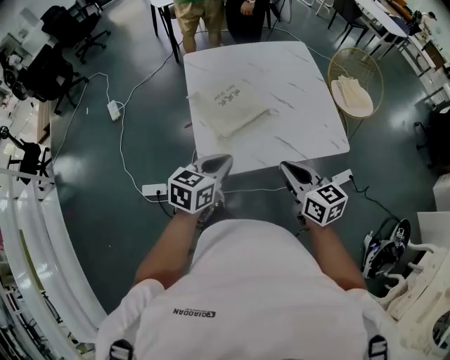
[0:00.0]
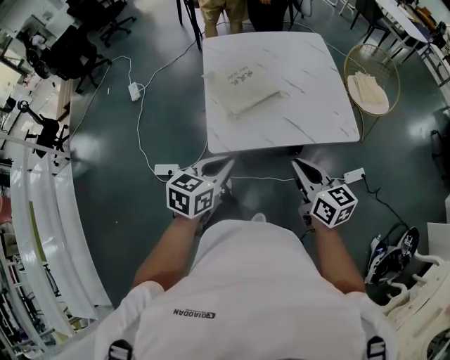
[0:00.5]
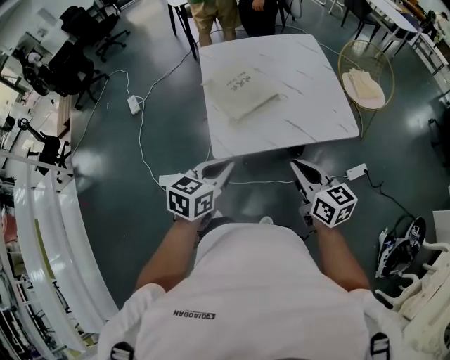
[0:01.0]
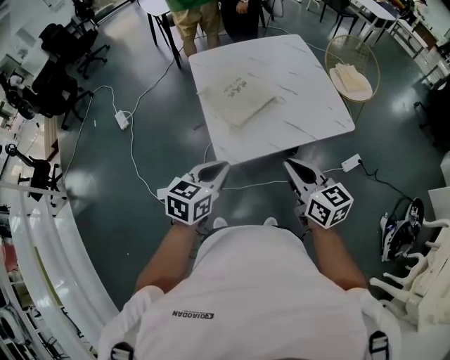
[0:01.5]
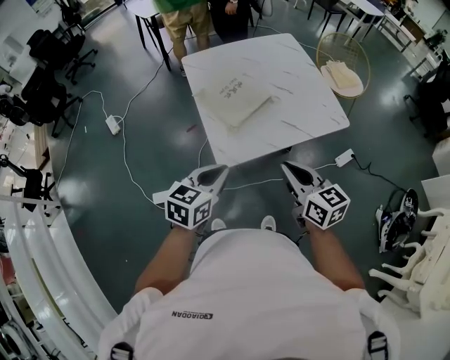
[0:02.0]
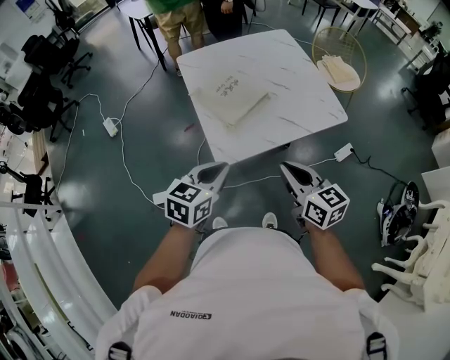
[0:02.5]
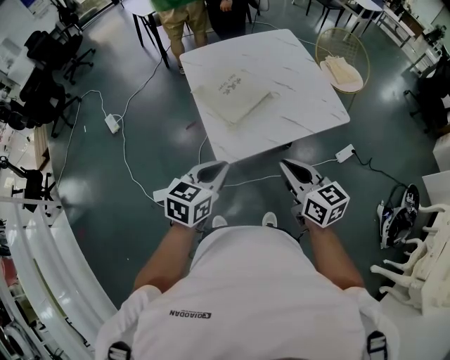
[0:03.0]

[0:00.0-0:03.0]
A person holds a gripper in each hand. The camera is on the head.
0:00.0 to 0:01.5: The left gripper heads backward and to the left, covering roughly 10 cm, while the right gripper heads backward, covering some 10 cm.
0:01.5 to 0:03.0: The grippers make only small movements.

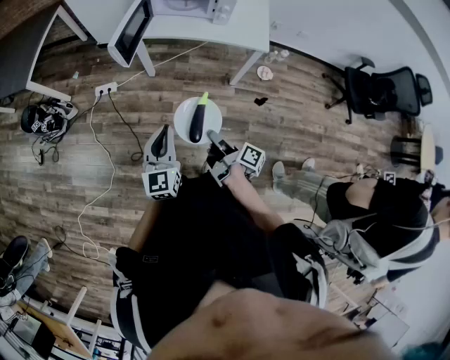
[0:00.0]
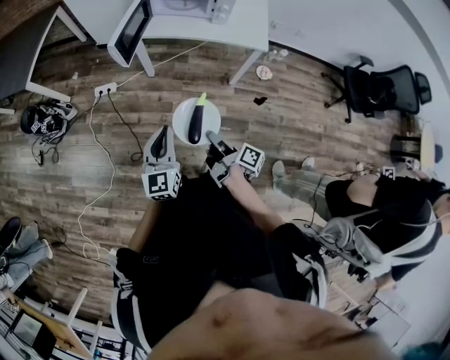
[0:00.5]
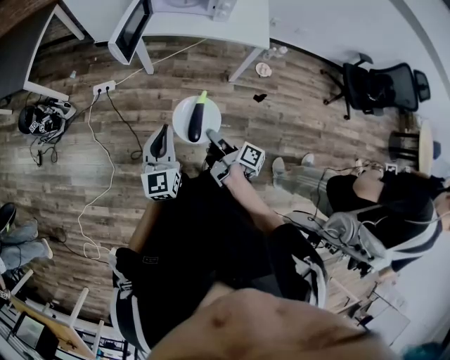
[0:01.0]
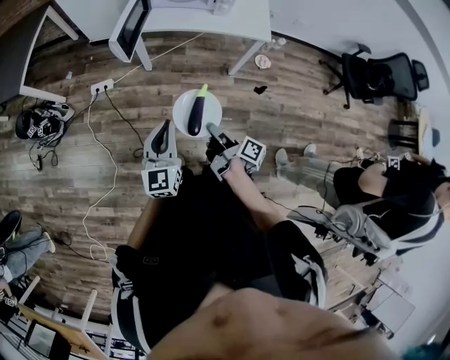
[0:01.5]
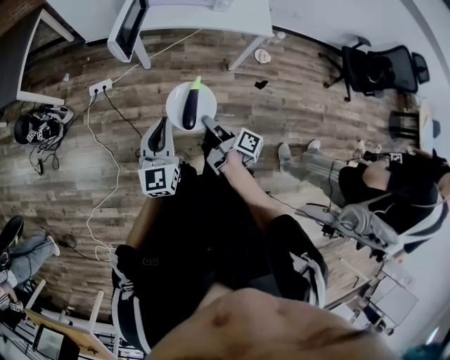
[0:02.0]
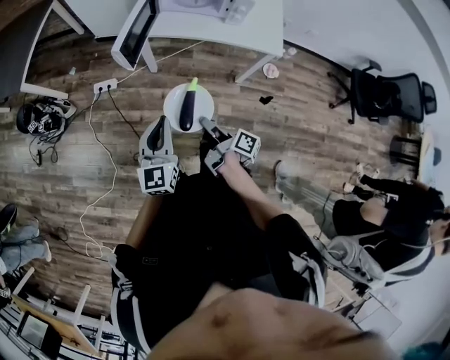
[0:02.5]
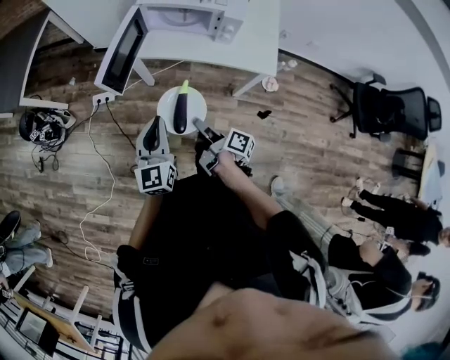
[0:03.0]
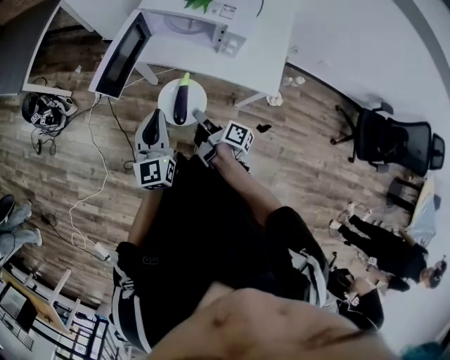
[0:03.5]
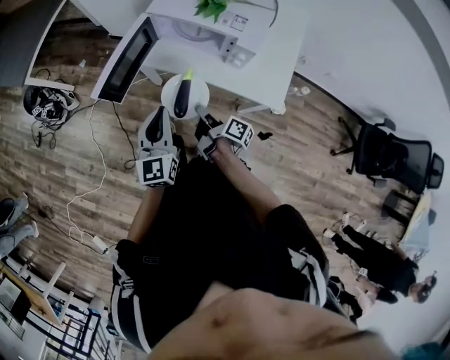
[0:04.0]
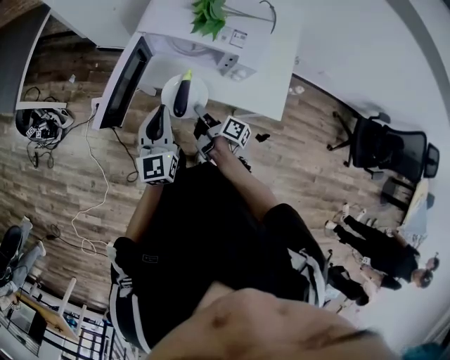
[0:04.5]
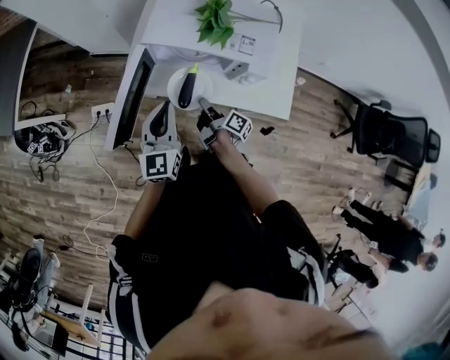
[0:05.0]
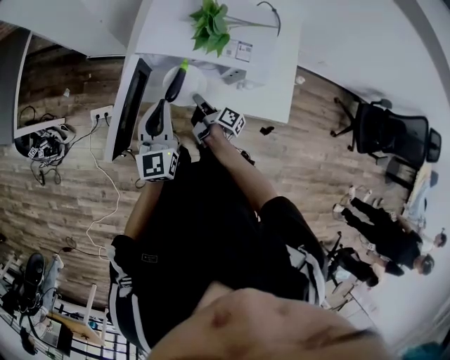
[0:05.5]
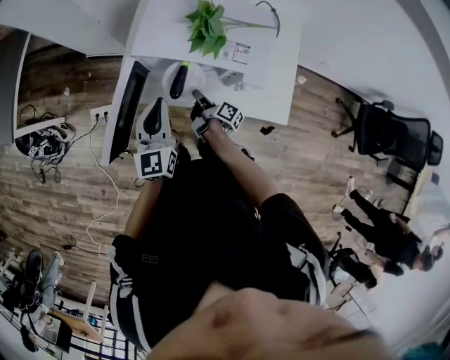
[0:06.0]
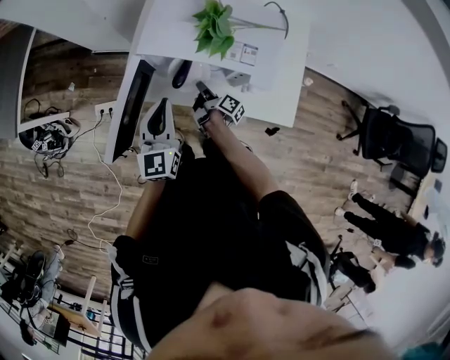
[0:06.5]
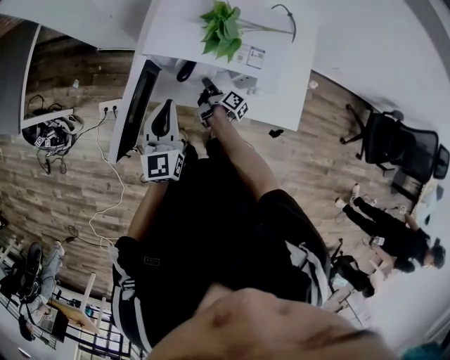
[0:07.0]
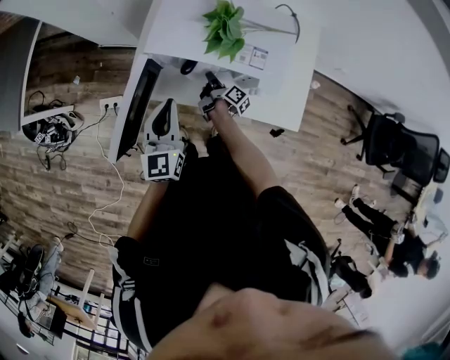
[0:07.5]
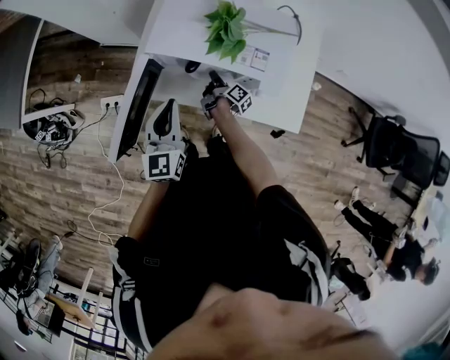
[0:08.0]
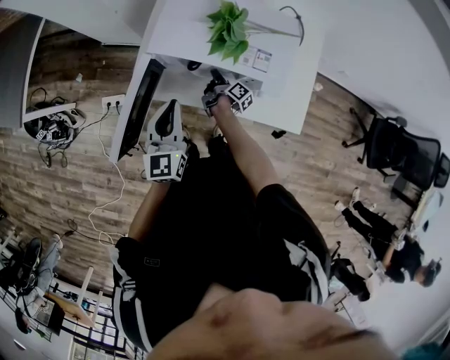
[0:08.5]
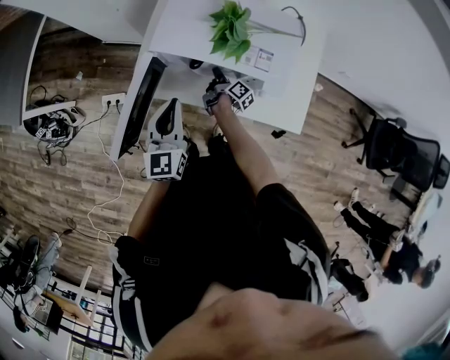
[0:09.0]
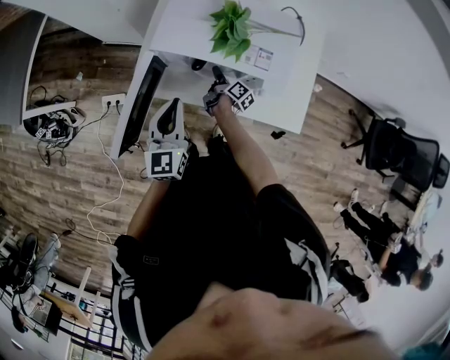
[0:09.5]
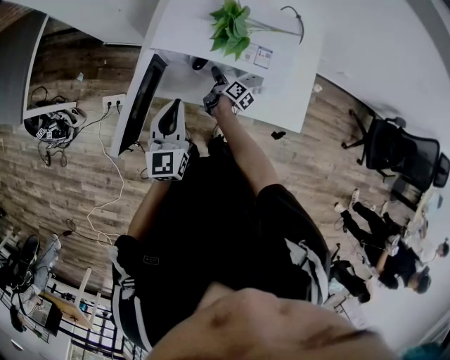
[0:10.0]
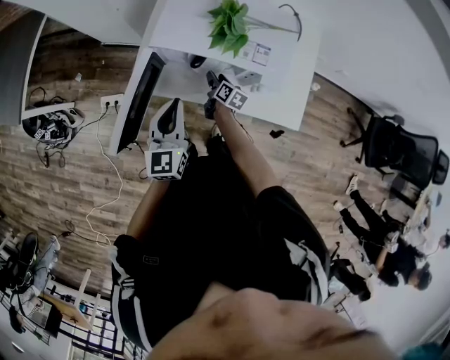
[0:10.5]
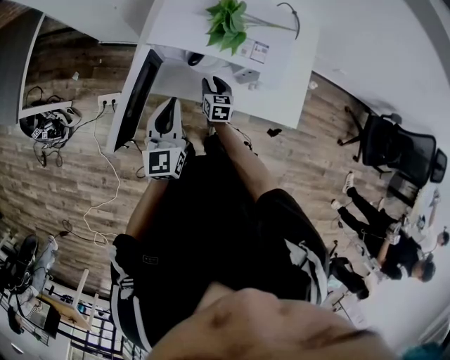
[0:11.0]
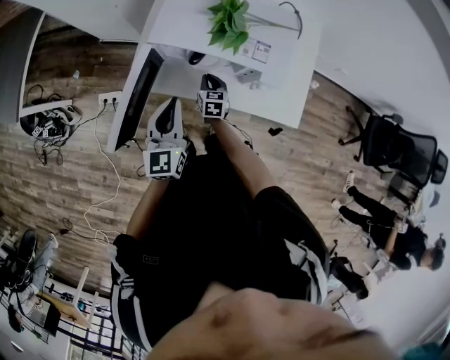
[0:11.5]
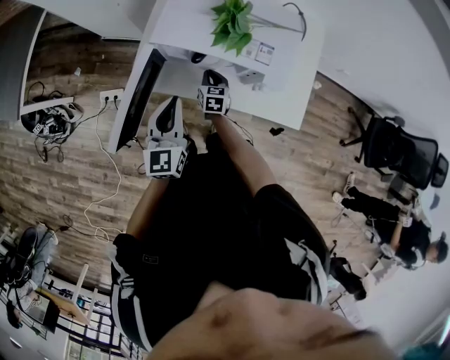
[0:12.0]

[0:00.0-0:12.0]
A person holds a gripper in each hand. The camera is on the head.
0:00.0 to 0:02.0: The grippers both shift to the left by some 5 cm.
0:02.0 to 0:04.0: Both grippers travel together forward and to the right, roughly 35 cm. The left gripper rotates some 20 degrees.
0:04.0 to 0:06.0: The left gripper travels forward by roughly 20 cm, while the right gripper goes approximately 25 cm forward and downward.
0:06.0 to 0:08.0: The right gripper moves forward and downward, approximately 10 cm.
0:08.0 to 0:10.0: The right gripper opens.
0:10.0 to 0:12.0: The right gripper rolls counterclockwise, seen from behind, by roughly 60 degrees, and closes.

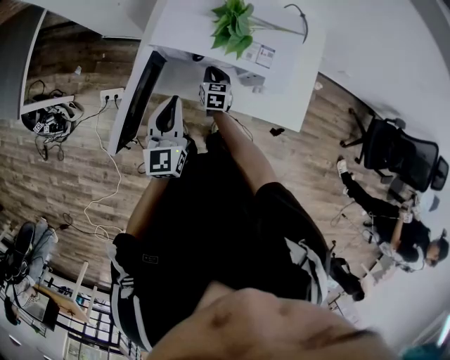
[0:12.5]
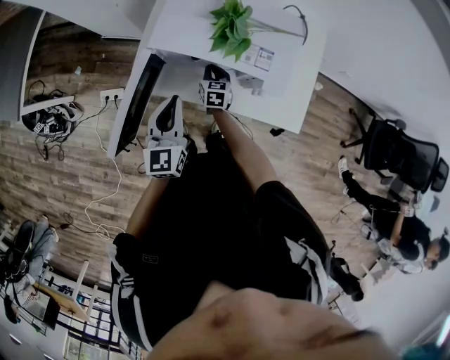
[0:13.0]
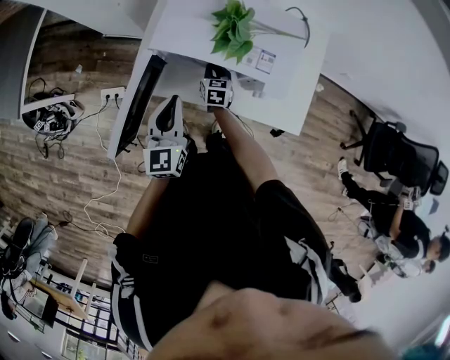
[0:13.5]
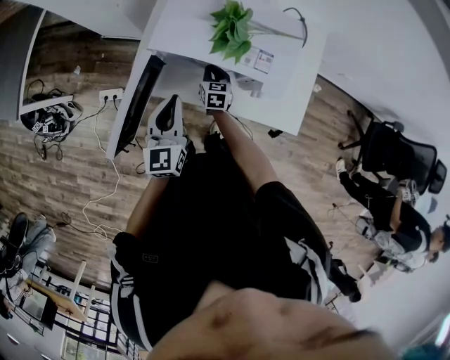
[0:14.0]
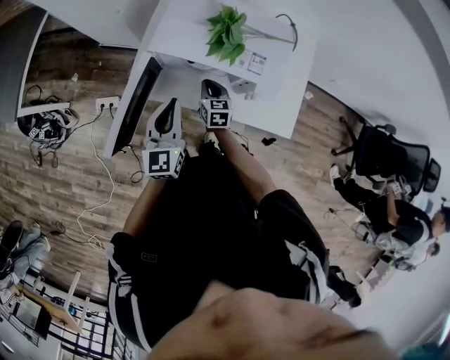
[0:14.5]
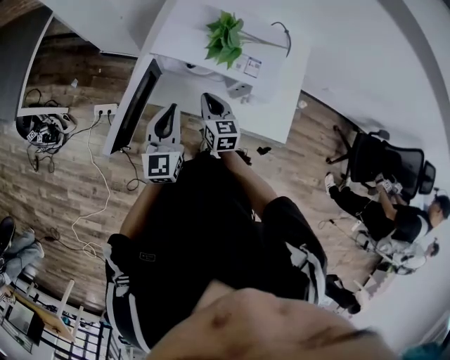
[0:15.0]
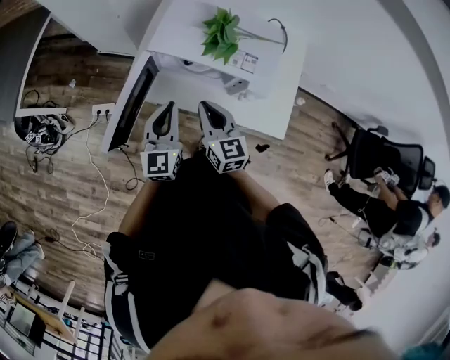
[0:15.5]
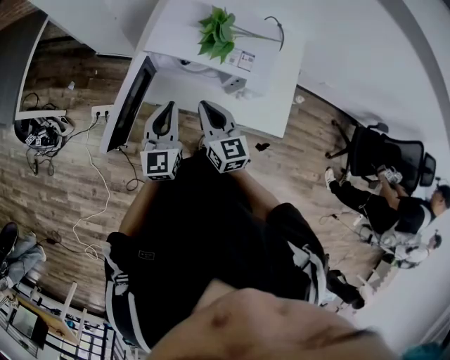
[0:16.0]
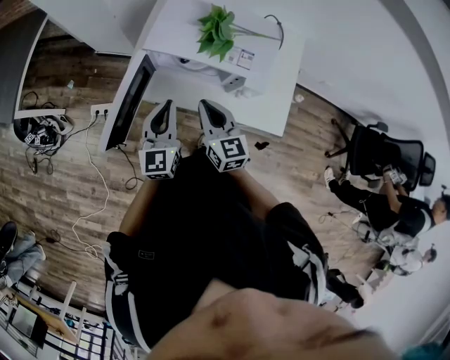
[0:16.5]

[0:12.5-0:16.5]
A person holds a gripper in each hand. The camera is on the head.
0:12.5 to 0:14.5: The right gripper goes some 5 cm upward.
0:14.5 to 0:16.5: The right gripper heads upward and backward, covering some 20 cm, and turns by about 20 degrees.

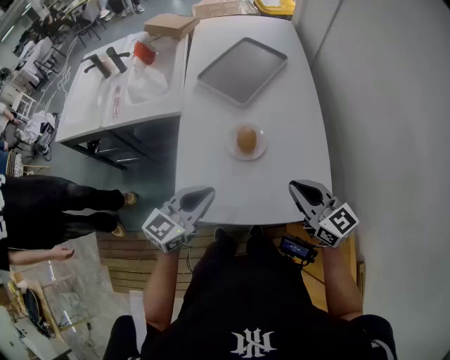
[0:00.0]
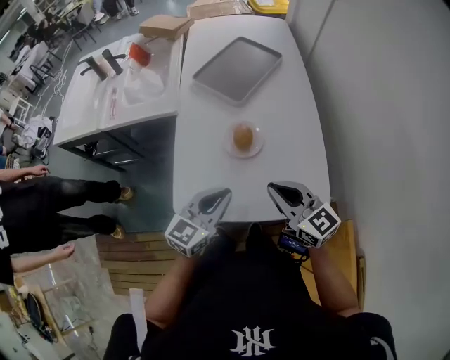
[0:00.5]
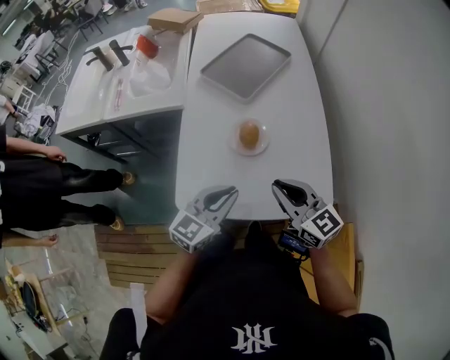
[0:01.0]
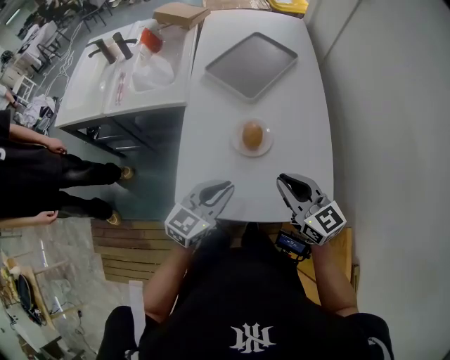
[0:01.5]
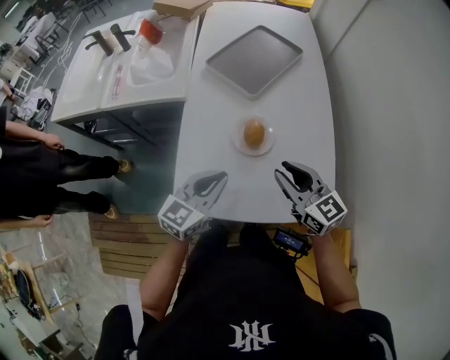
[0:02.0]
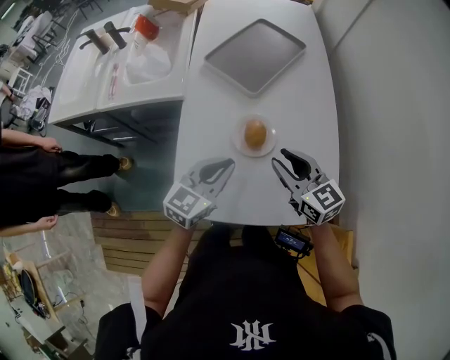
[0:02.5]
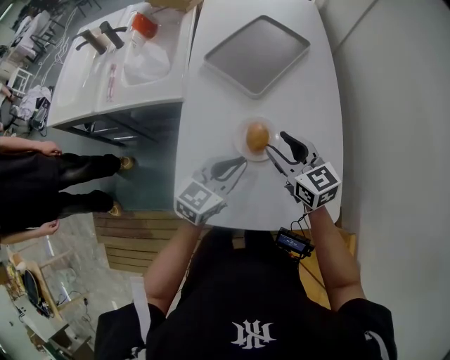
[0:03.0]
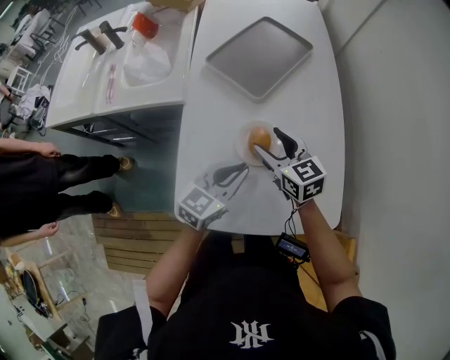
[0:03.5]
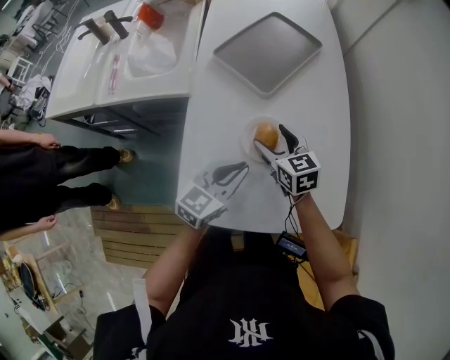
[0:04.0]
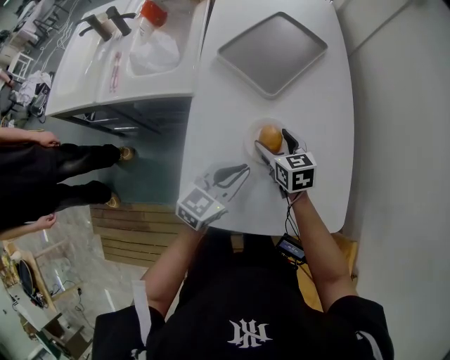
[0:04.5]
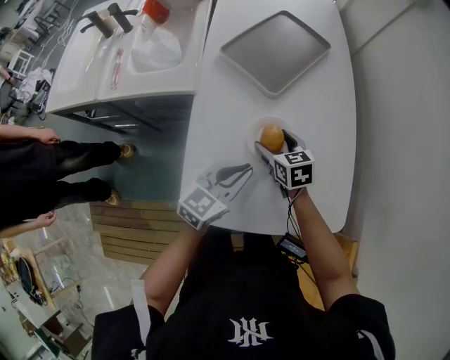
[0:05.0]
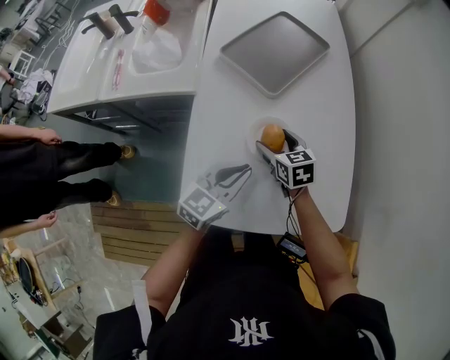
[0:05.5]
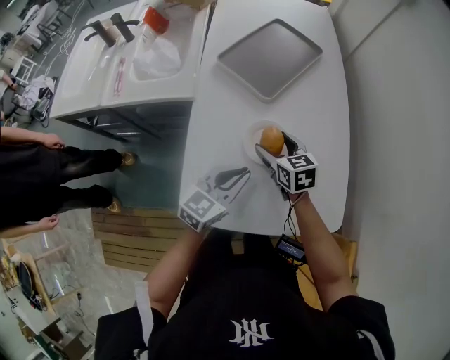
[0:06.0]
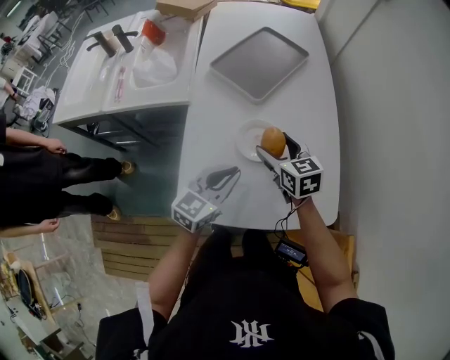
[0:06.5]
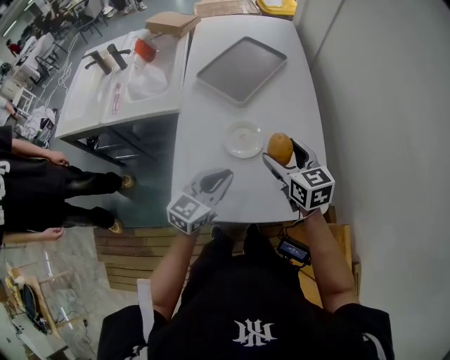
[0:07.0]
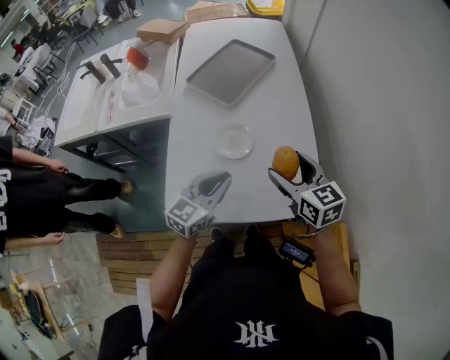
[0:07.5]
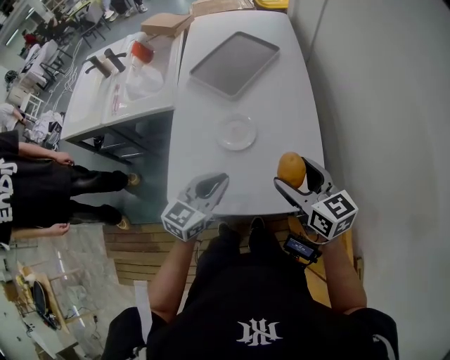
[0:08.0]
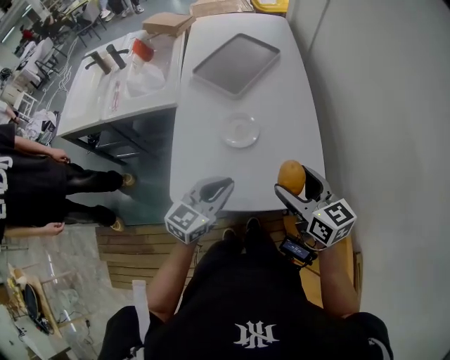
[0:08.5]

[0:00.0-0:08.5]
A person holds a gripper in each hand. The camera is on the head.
0:00.0 to 0:02.0: The right gripper goes about 10 cm forward and to the left. The left gripper changes place by roughly 5 cm.
0:02.0 to 0:04.0: The left gripper moves forward, about 5 cm; the right gripper goes approximately 20 cm forward, downward and to the left, and opens its fingers.
0:04.0 to 0:06.5: The right gripper moves about 5 cm.
0:06.5 to 0:08.5: The left gripper heads backward and to the right, covering some 10 cm; the right gripper travels backward, to the right and upward by roughly 25 cm.
